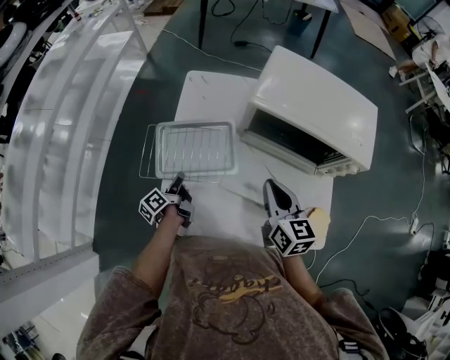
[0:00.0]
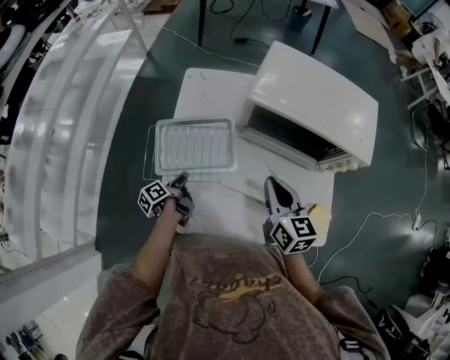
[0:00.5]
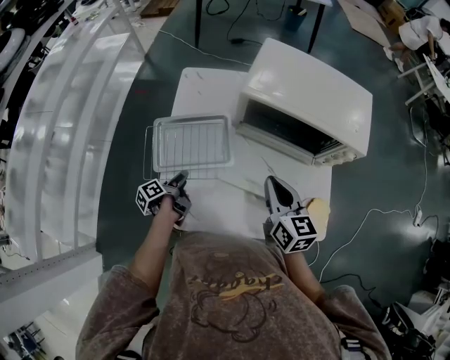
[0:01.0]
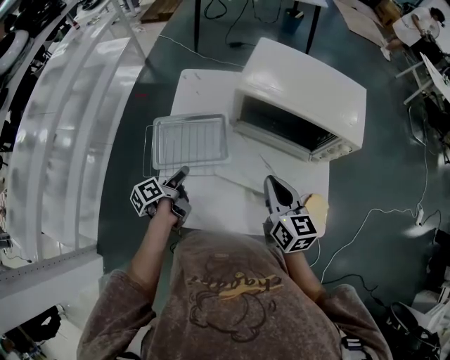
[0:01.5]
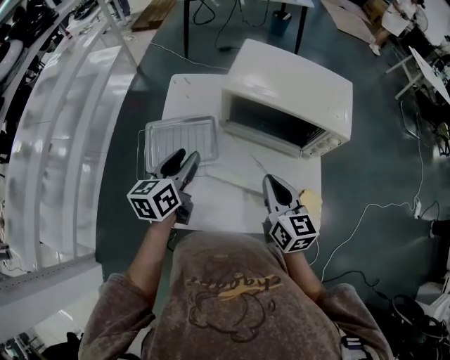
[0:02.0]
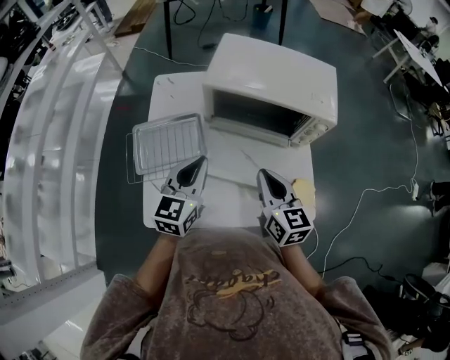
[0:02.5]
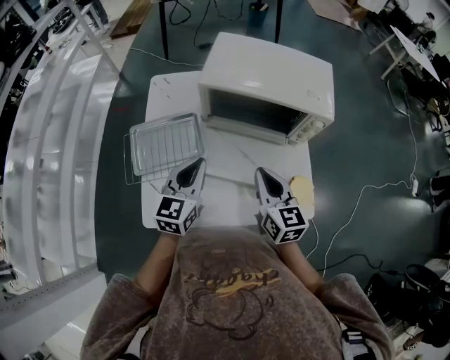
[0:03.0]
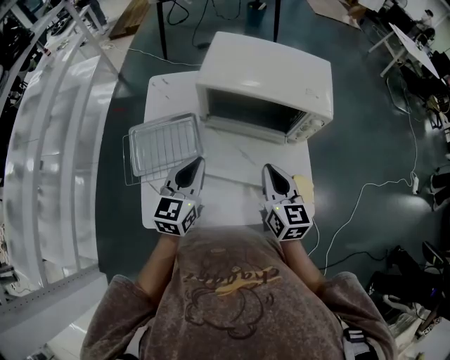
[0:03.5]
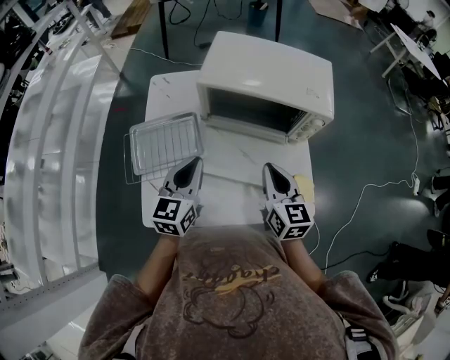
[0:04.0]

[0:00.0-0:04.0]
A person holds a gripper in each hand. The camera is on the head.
0:00.0 to 0:02.0: The right gripper moves approximately 5 cm.

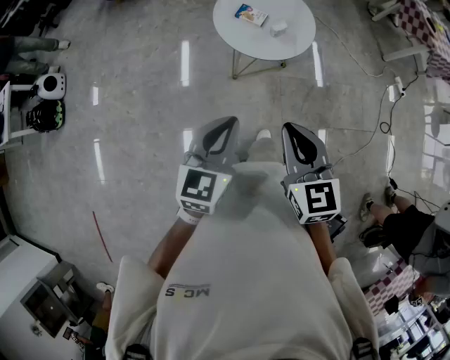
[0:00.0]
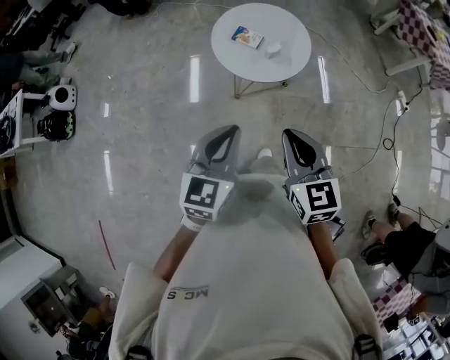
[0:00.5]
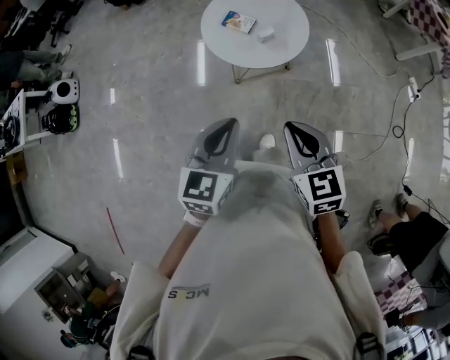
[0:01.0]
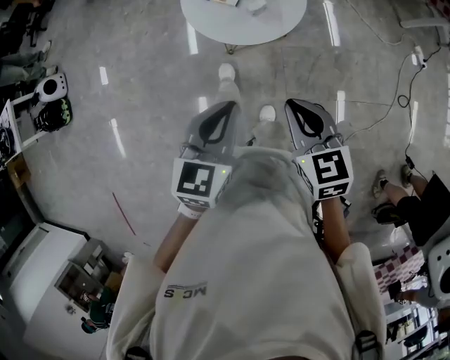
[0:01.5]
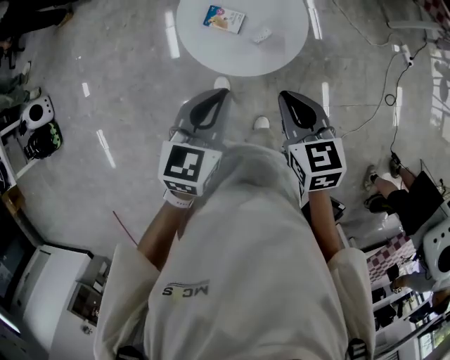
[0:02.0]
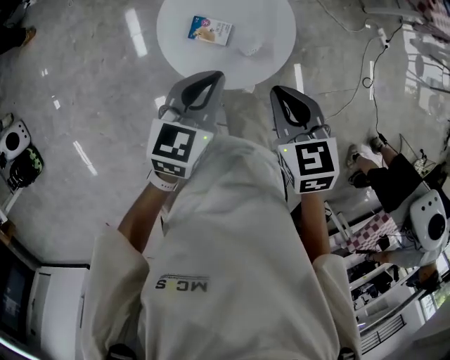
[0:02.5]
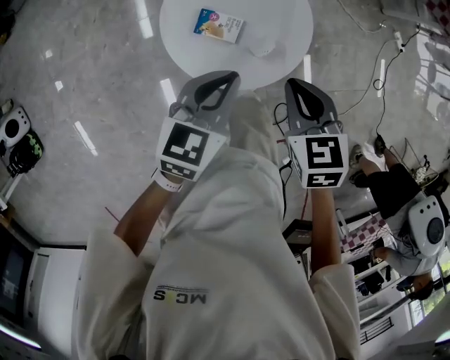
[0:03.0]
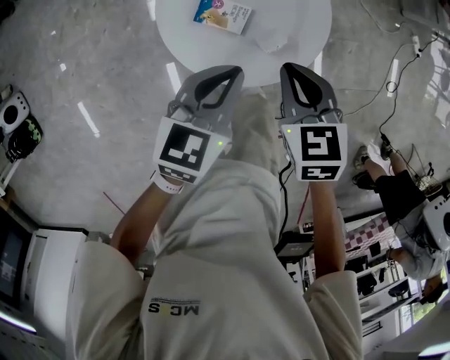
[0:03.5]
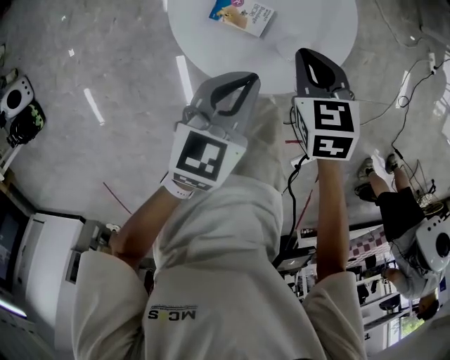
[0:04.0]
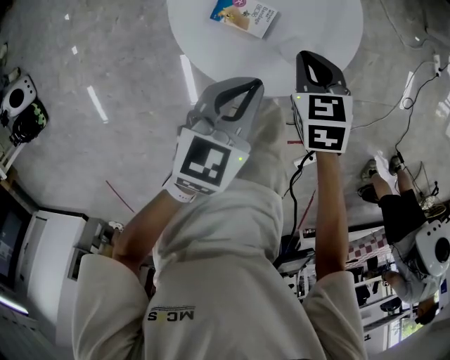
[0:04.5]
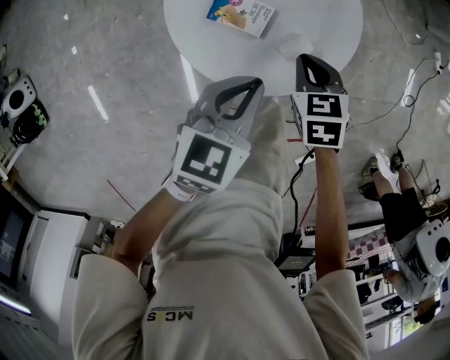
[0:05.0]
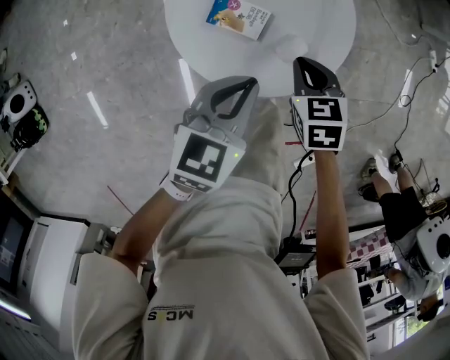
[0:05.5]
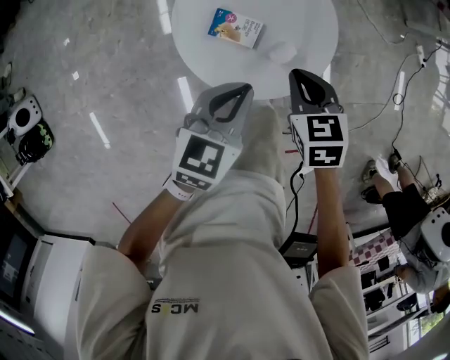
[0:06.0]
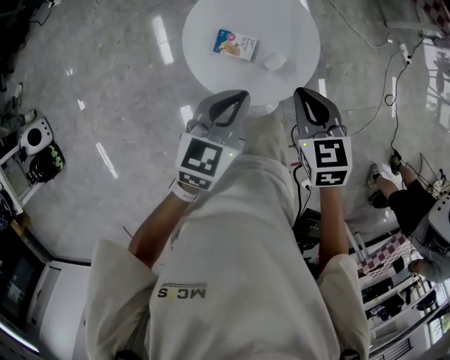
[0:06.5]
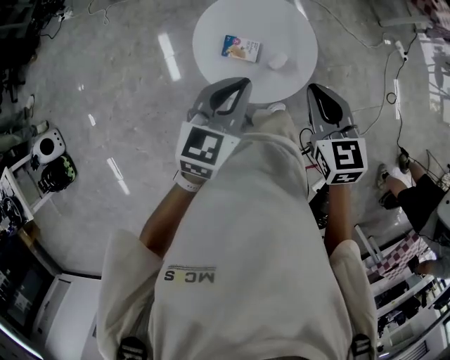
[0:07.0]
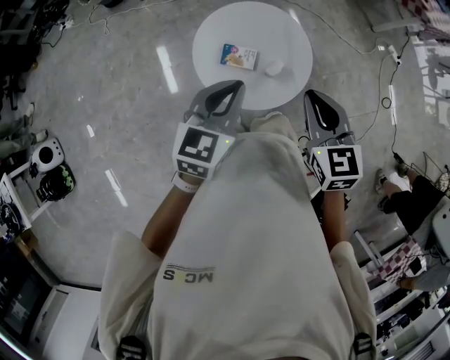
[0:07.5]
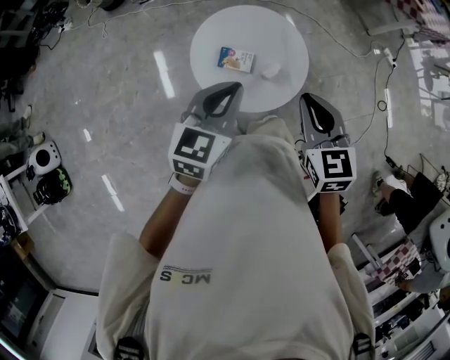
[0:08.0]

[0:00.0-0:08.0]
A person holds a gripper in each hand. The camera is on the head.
0:00.0 to 0:02.0: Both grippers move forward, about 30 cm.
0:02.0 to 0:04.0: Both grippers move downward and forward, about 30 cm.
0:04.0 to 0:06.0: The right gripper moves upward, about 5 cm.
0:06.0 to 0:08.0: The left gripper moves upward, some 20 cm; the right gripper shifts roughly 25 cm upward and backward, and turns by approximately 30 degrees.

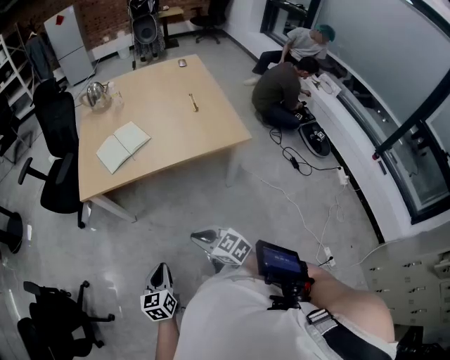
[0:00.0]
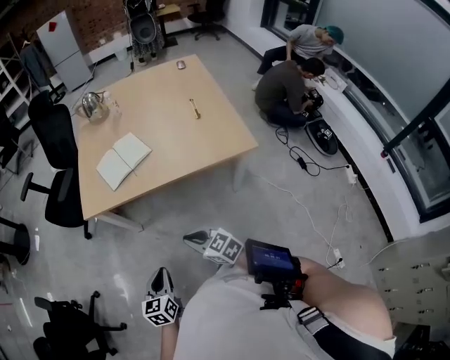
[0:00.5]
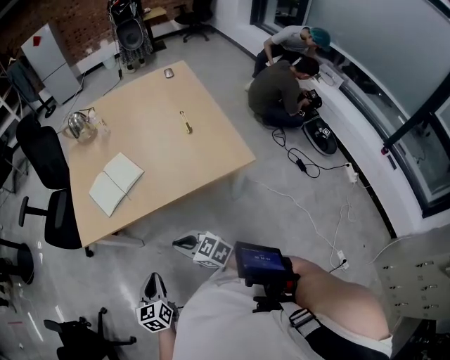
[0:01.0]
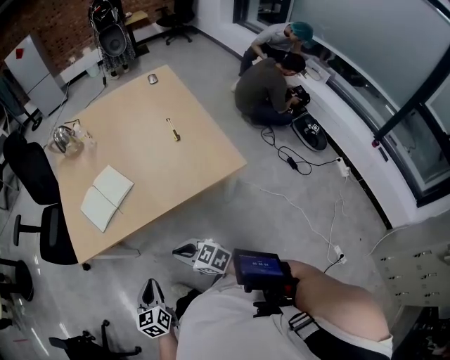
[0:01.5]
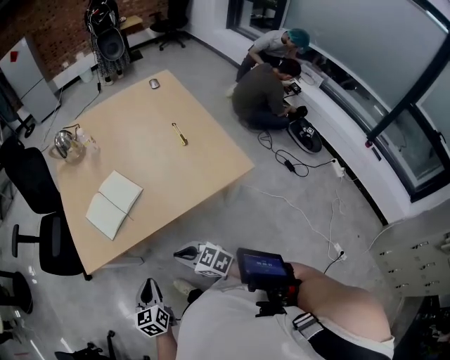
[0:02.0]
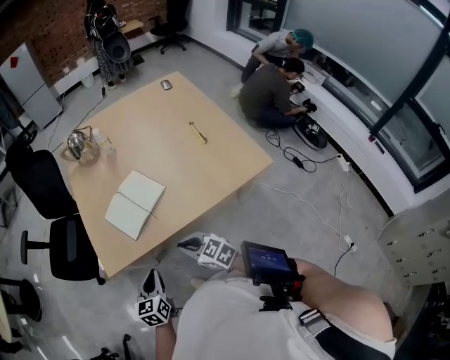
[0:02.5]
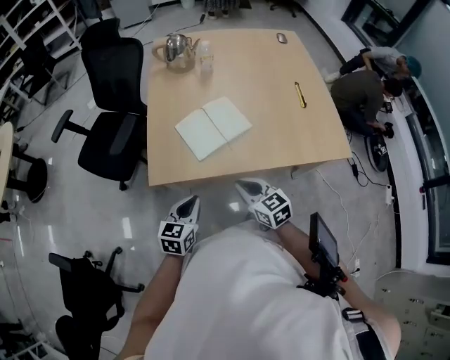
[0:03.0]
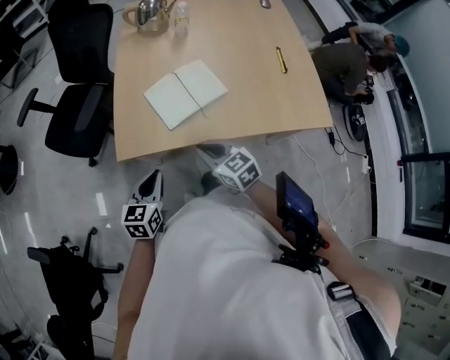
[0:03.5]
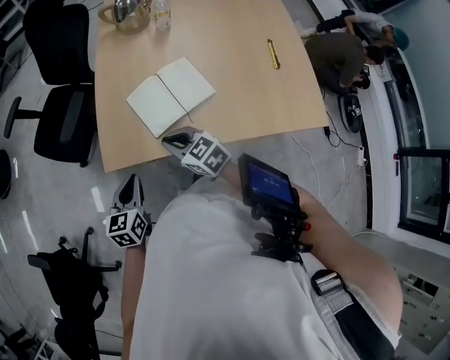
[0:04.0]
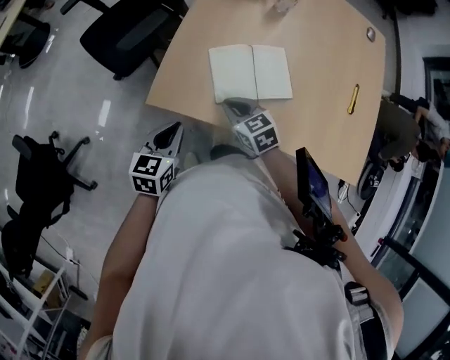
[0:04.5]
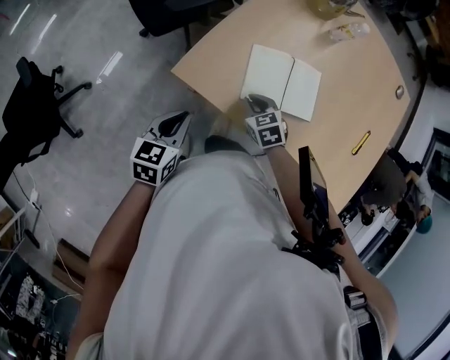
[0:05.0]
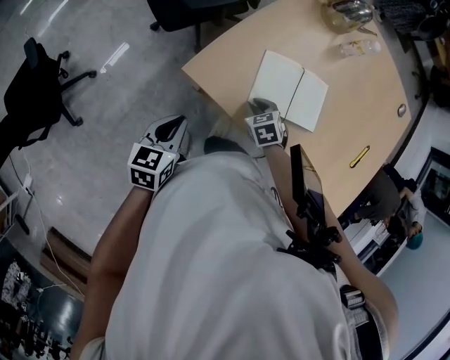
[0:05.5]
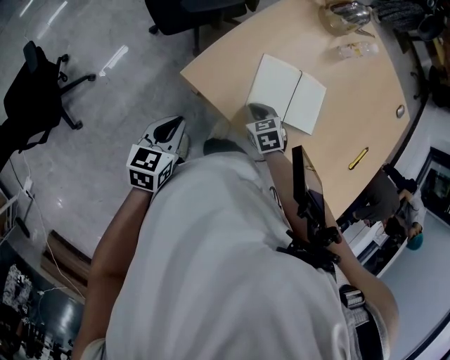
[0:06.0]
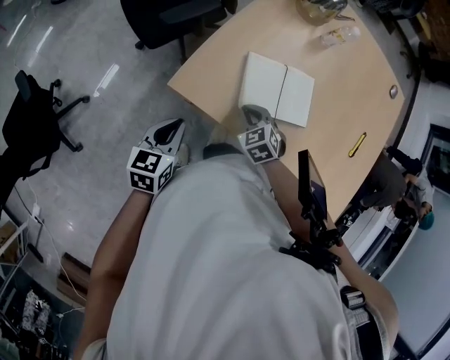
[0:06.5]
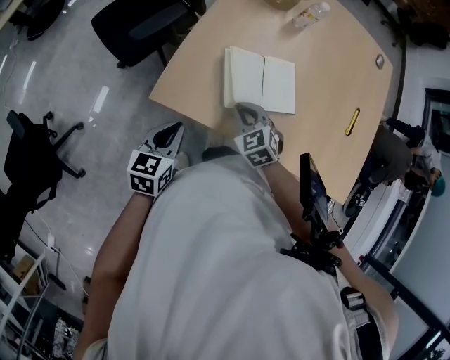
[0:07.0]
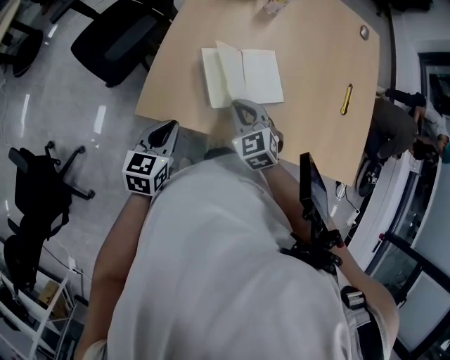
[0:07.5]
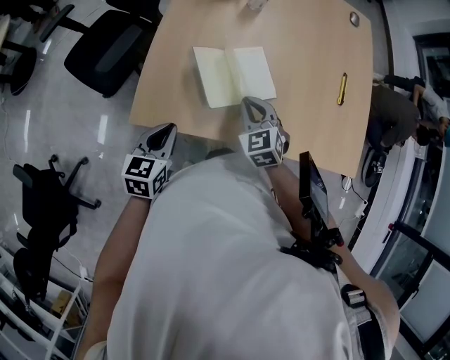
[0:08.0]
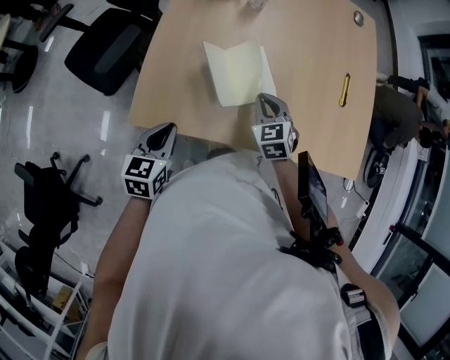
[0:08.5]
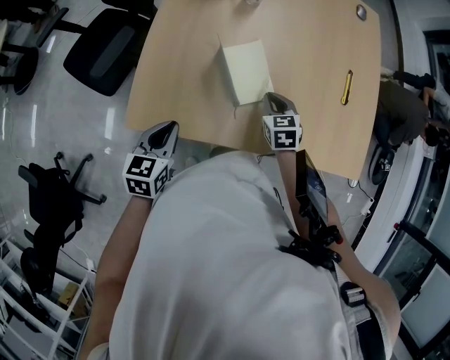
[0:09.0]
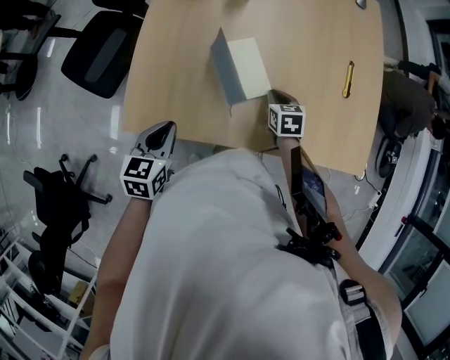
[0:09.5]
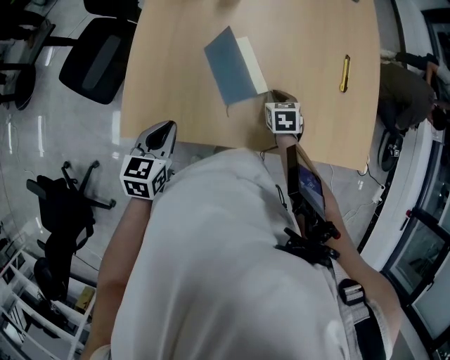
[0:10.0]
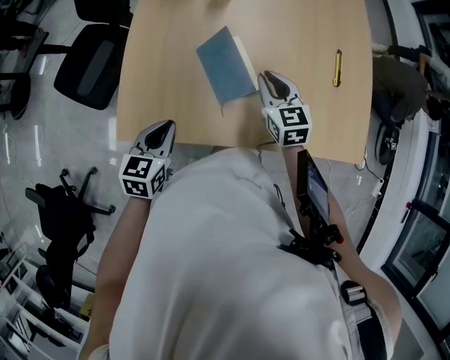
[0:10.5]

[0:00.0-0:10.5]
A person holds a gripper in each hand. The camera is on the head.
0:00.0 to 0:02.0: The two grippers go about 25 cm forward.
0:02.0 to 0:04.0: The right gripper heads forward and to the left, covering some 25 cm, while the left gripper moves to the left and forward, approximately 20 cm.
0:04.0 to 0:06.5: The right gripper heads downward, covering about 10 cm, and swivels roughly 40 degrees.
0:06.5 to 0:08.5: The right gripper is displaced to the right by some 15 cm, and changes its angle by roughly 30 degrees, while the left gripper heads to the right and forward, covering some 10 cm.
0:08.5 to 0:10.5: The left gripper changes place by about 5 cm. The right gripper travels downward and back again, approximately 10 cm each way, and turns by approximately 20 degrees.

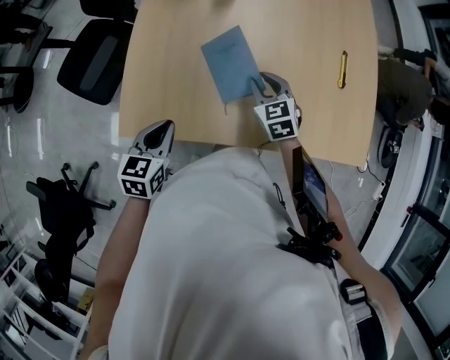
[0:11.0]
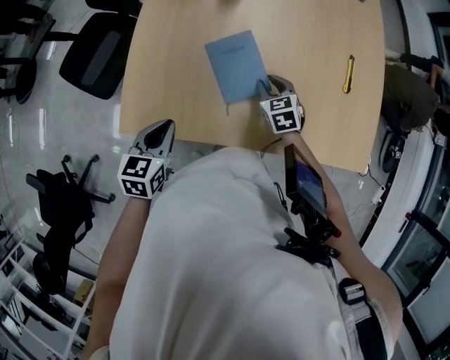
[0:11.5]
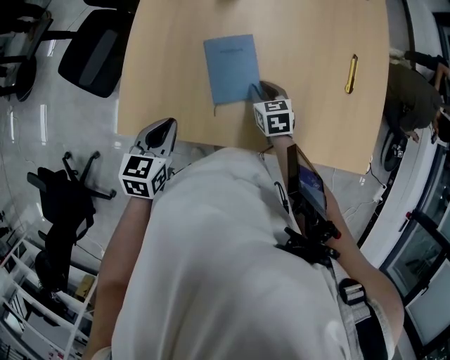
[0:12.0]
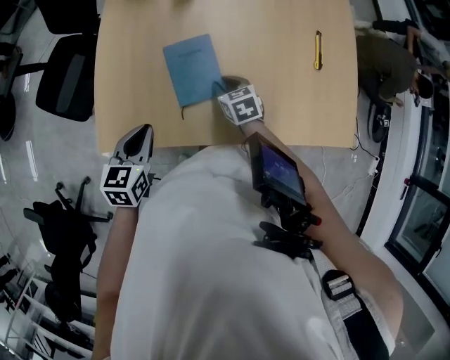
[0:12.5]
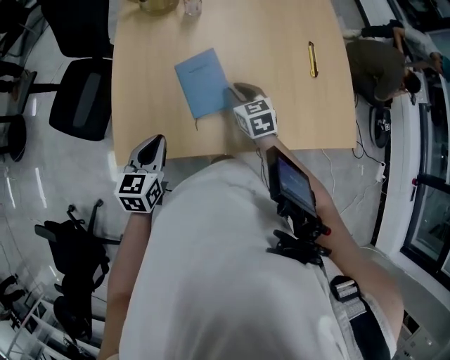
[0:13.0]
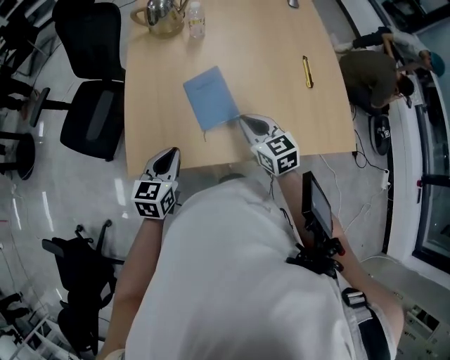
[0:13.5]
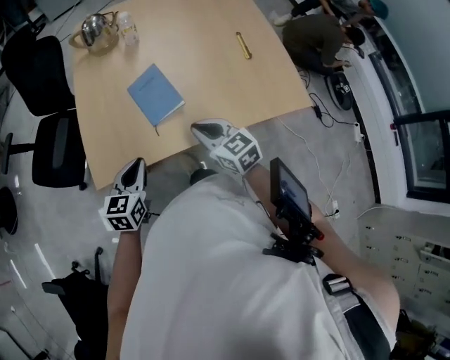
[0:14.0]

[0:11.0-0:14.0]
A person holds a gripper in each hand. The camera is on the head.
0:11.0 to 0:12.5: The right gripper goes approximately 10 cm downward, and changes its angle by about 20 degrees.
0:12.5 to 0:14.0: The right gripper travels upward and backward by about 25 cm, and rotates about 30 degrees. The left gripper is displaced backward by approximately 5 cm.

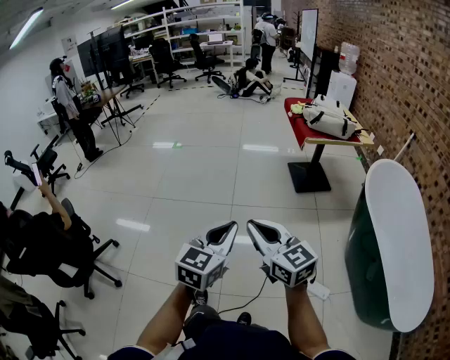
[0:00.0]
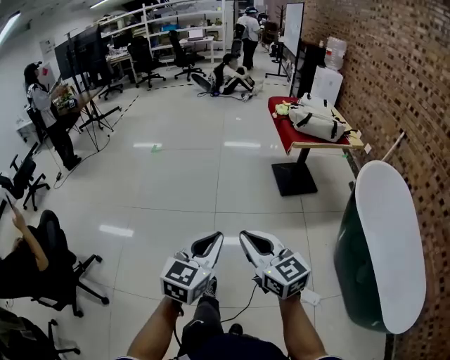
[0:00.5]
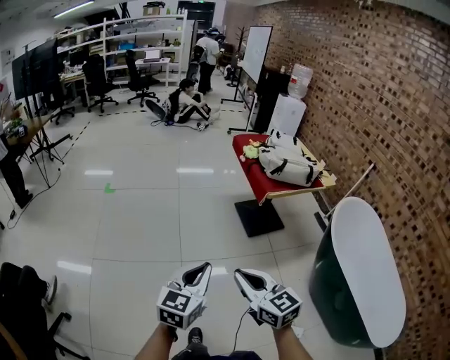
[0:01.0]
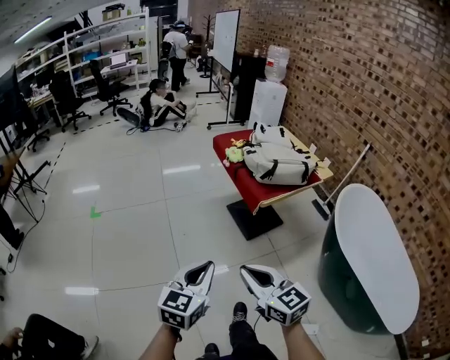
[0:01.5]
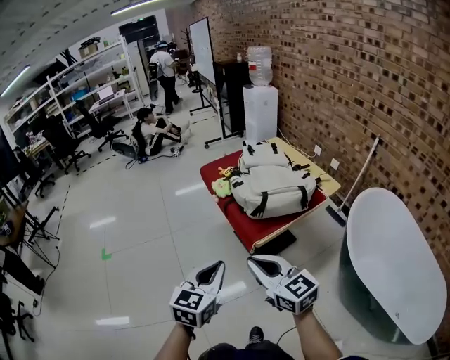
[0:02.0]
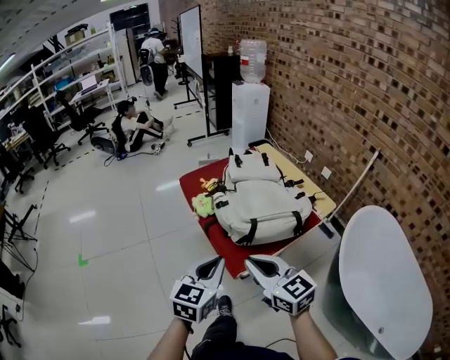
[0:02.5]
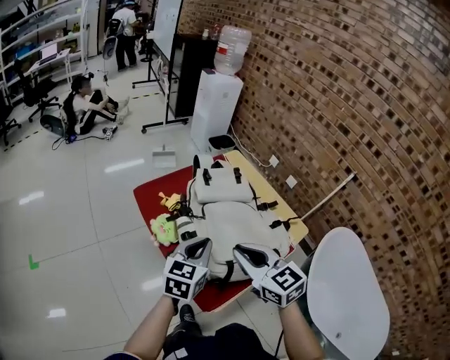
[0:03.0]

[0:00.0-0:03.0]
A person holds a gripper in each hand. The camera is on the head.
0:00.0 to 0:01.5: The pair of grippers is taken forward, some 40 cm. The right gripper swivels roughly 20 degrees.
0:01.5 to 0:03.0: Both grippers are carried forward and to the right, about 60 cm.
